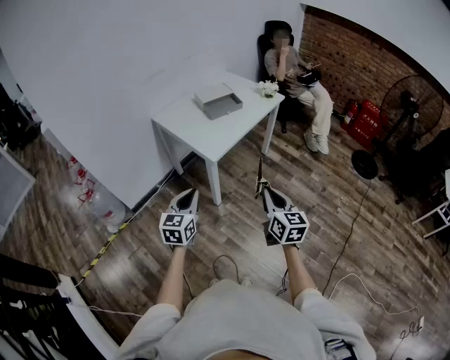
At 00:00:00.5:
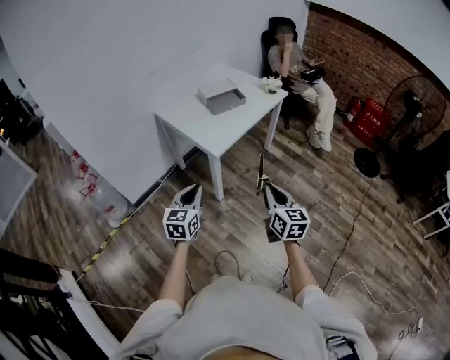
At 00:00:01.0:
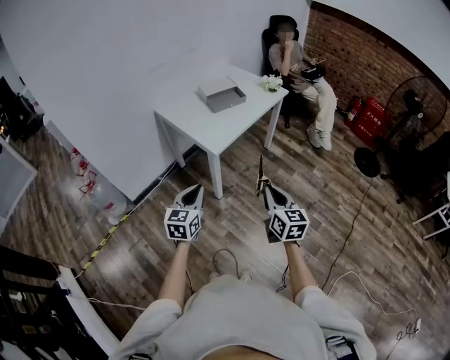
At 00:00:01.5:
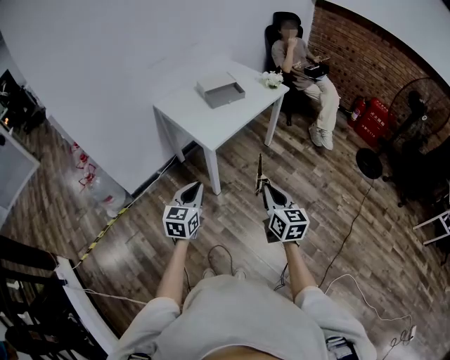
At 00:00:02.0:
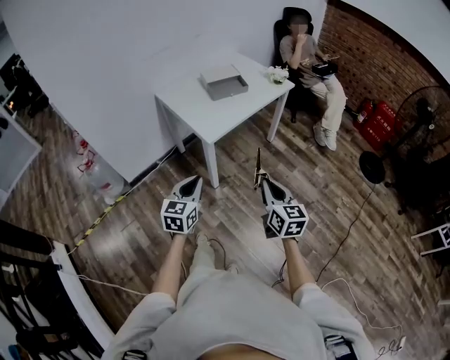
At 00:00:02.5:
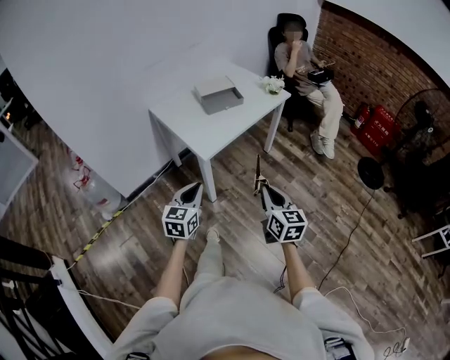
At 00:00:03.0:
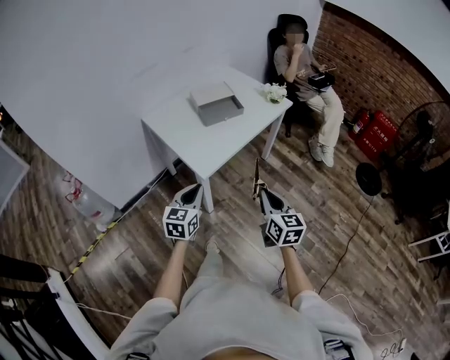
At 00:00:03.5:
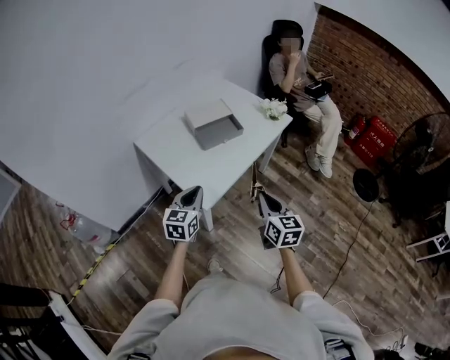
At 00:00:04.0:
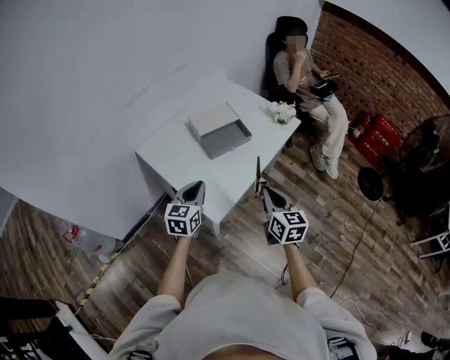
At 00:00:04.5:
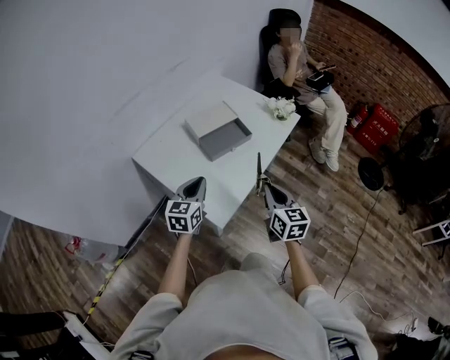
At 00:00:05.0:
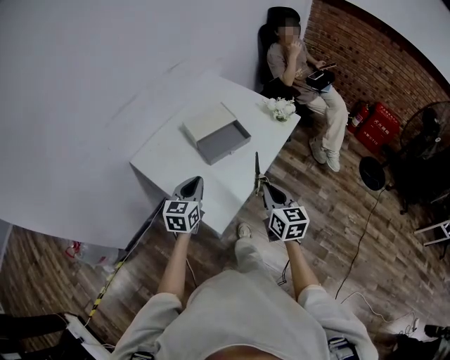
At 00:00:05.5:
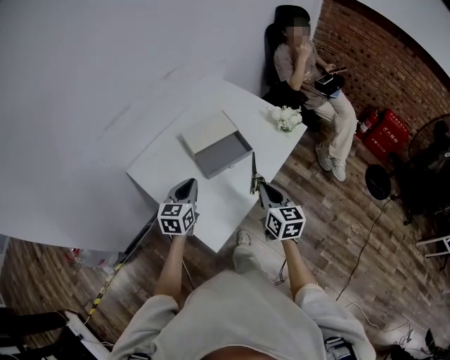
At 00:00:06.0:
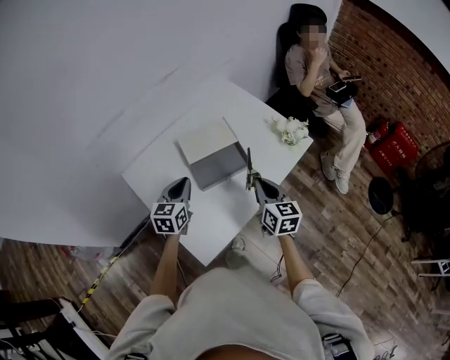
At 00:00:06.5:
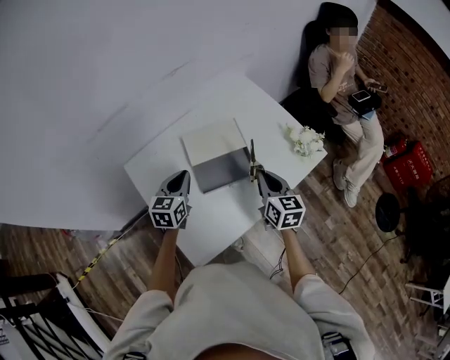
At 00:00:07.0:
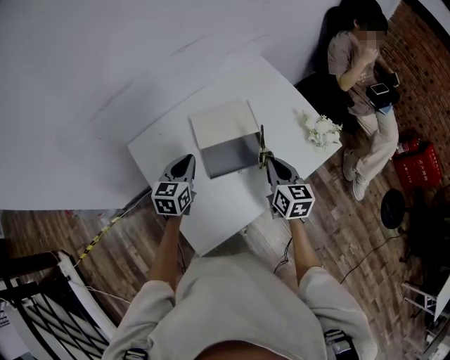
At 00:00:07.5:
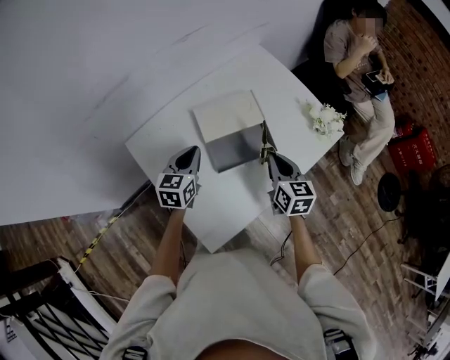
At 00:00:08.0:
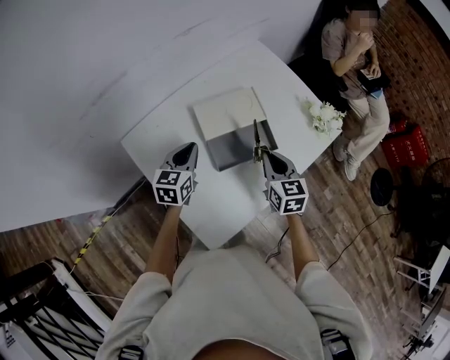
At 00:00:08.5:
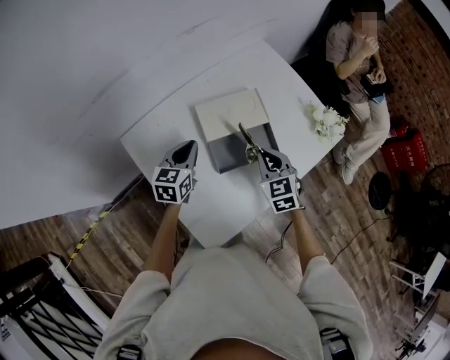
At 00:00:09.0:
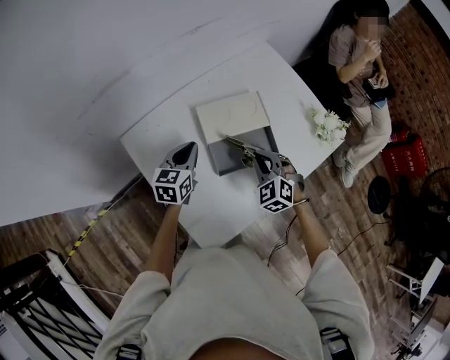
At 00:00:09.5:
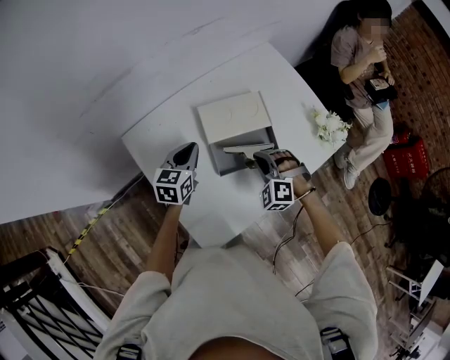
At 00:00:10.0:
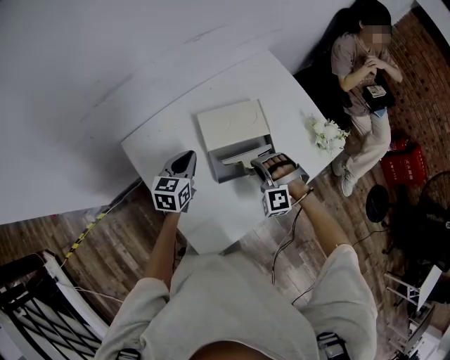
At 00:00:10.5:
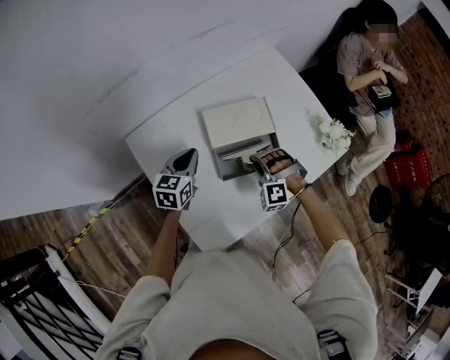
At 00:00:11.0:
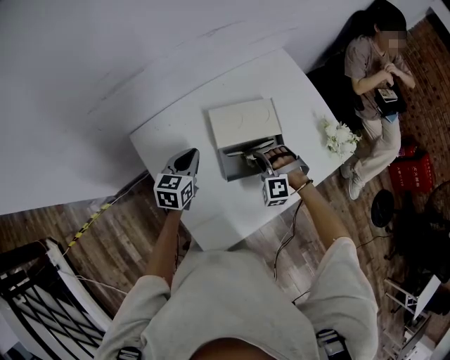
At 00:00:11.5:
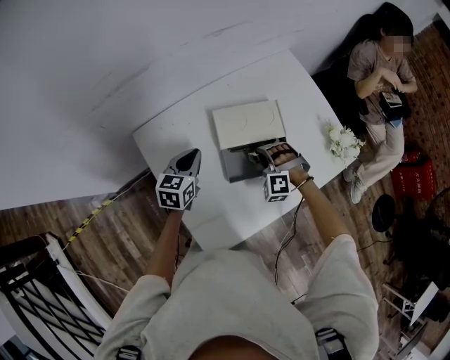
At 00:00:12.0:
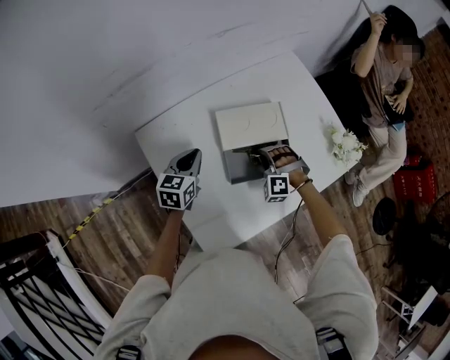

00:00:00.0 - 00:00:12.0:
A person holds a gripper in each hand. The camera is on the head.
00:00:00.0 - 00:00:02.0: Both grippers move to the right, approximately 5 cm.
00:00:02.0 - 00:00:04.0: Both grippers are carried forward, approximately 40 cm.
00:00:04.0 - 00:00:06.0: Both grippers move forward, about 25 cm.
00:00:06.0 - 00:00:08.0: The right gripper travels forward, downward and to the left by approximately 15 cm; the left gripper is displaced forward and downward by roughly 10 cm.
00:00:08.0 - 00:00:10.0: The right gripper moves downward, about 5 cm, and rolls counterclockwise, seen from behind, by about 90 degrees.
00:00:10.0 - 00:00:12.0: The right gripper moves downward and forward, approximately 10 cm.

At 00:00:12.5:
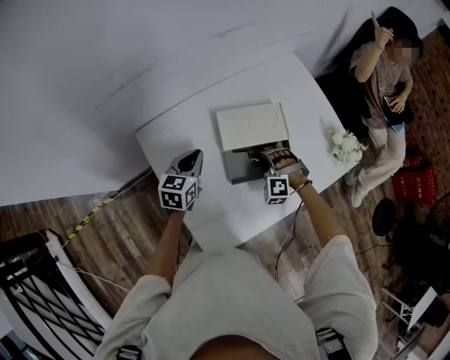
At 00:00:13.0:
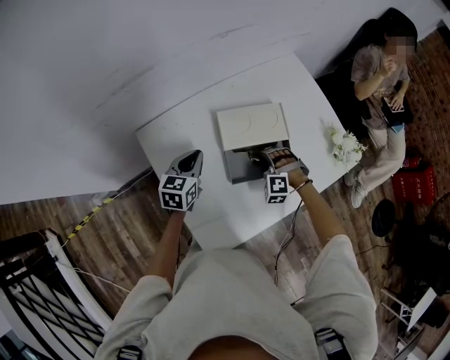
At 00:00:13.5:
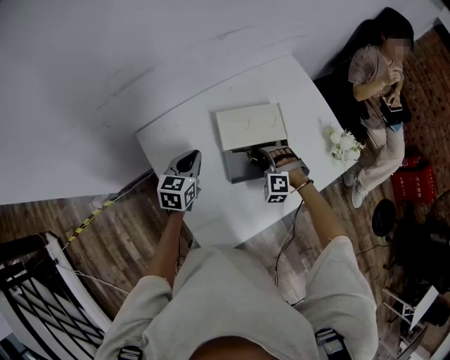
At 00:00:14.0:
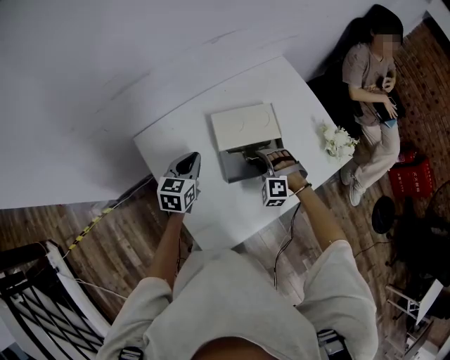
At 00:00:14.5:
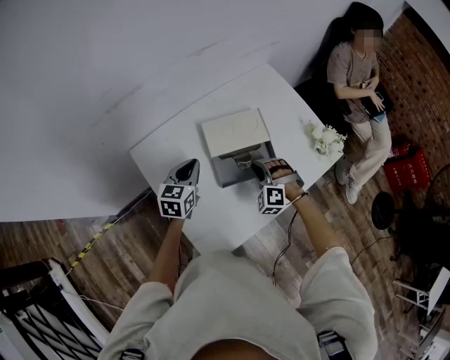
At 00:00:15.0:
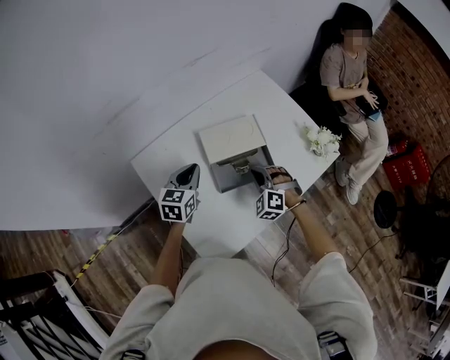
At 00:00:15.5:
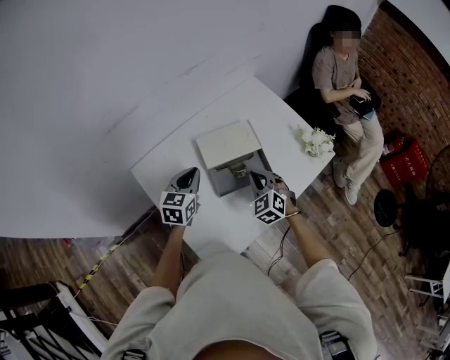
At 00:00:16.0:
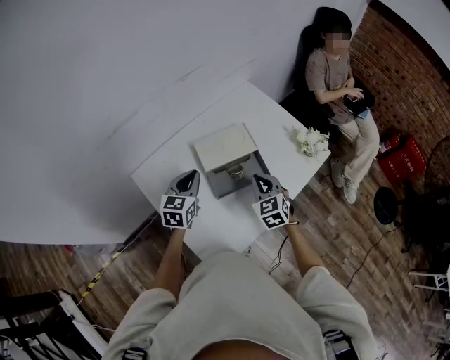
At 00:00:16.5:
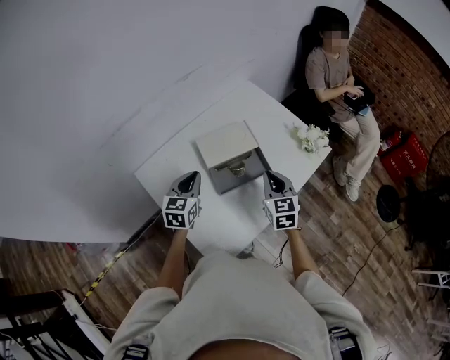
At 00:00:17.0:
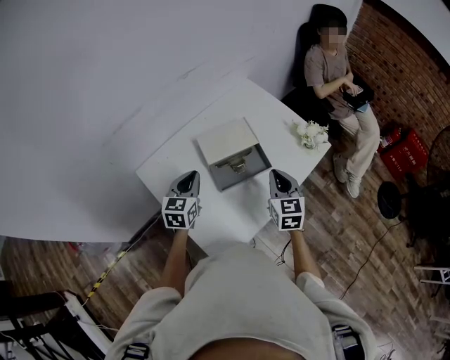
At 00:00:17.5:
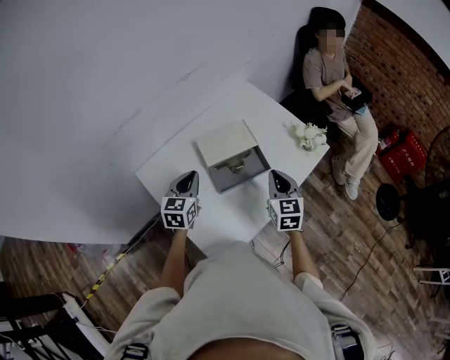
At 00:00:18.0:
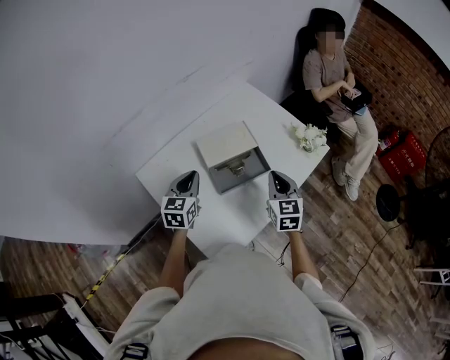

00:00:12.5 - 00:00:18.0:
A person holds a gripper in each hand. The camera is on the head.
00:00:12.5 - 00:00:14.5: The right gripper moves upward, about 5 cm, and opens and closes again, while the left gripper shifts by approximately 5 cm.
00:00:14.5 - 00:00:16.0: The left gripper ends up about 5 cm from where it was, while the right gripper travels upward by roughly 10 cm, and rolls clockwise, seen from behind, by roughly 60 degrees.
00:00:16.0 - 00:00:18.0: The right gripper travels upward and to the right by some 10 cm, and rotates about 20 degrees.

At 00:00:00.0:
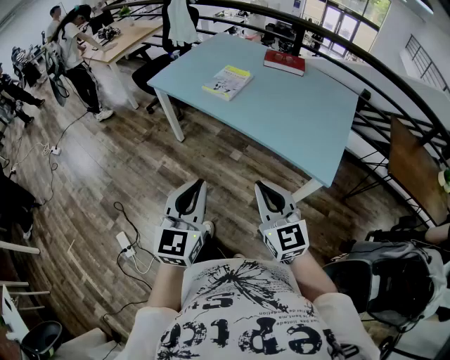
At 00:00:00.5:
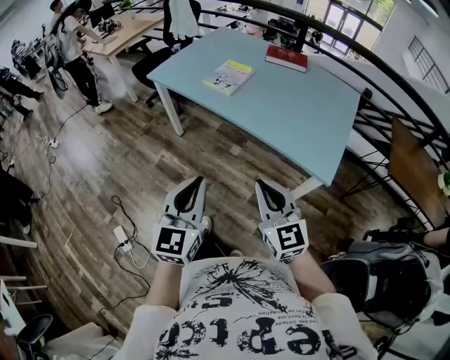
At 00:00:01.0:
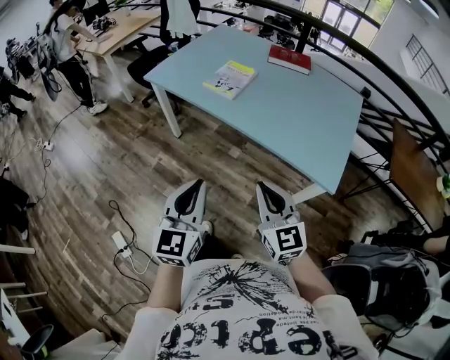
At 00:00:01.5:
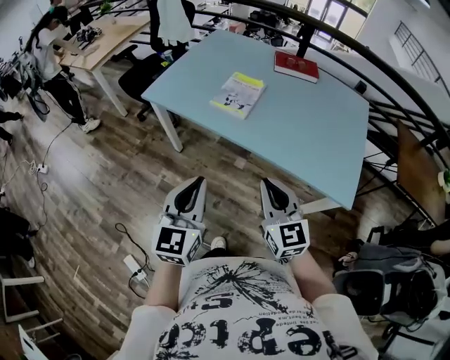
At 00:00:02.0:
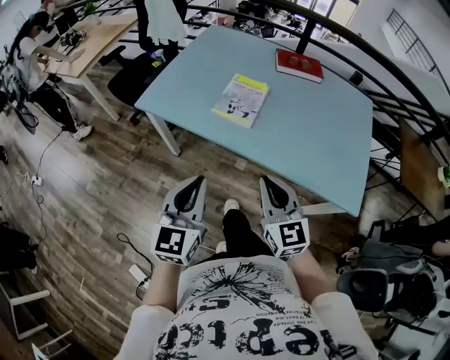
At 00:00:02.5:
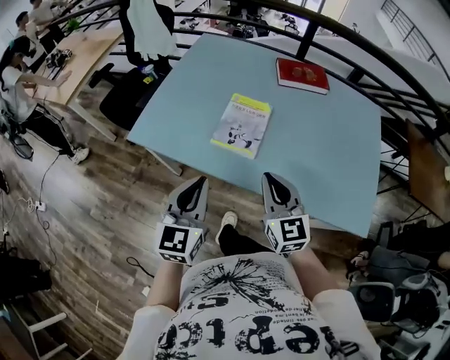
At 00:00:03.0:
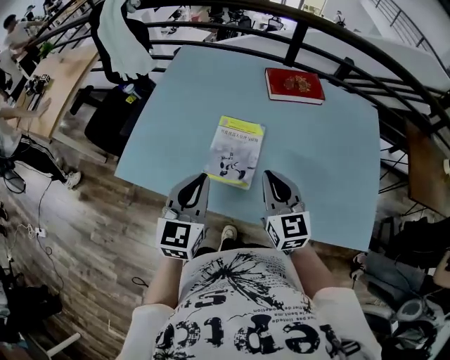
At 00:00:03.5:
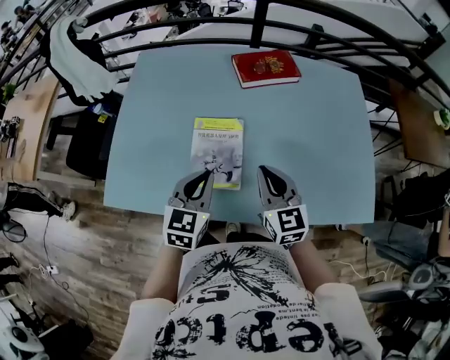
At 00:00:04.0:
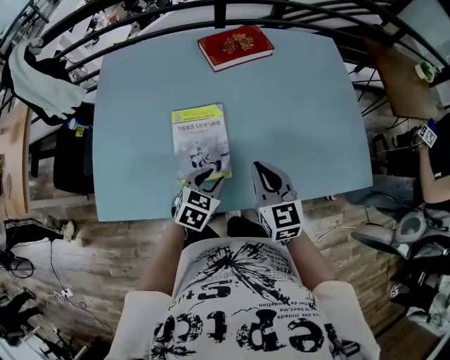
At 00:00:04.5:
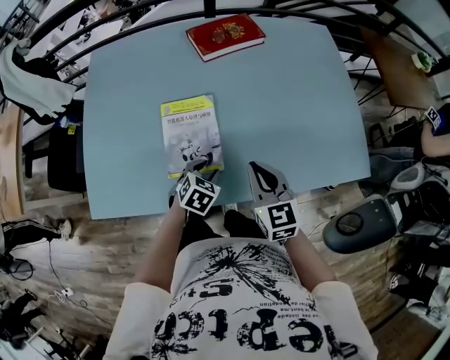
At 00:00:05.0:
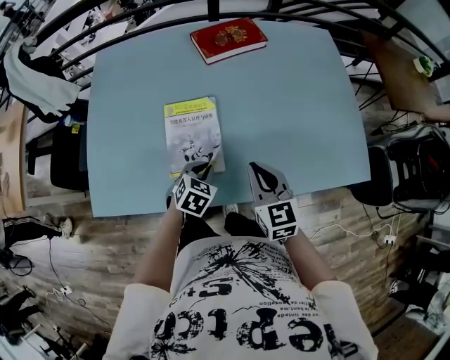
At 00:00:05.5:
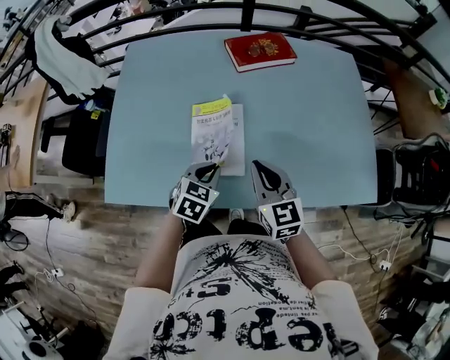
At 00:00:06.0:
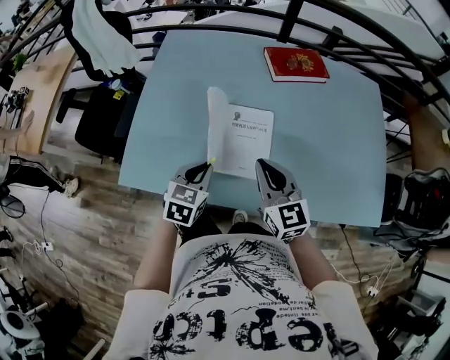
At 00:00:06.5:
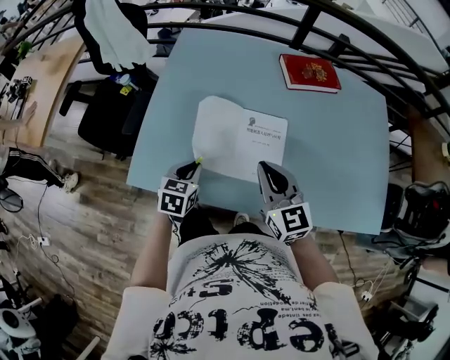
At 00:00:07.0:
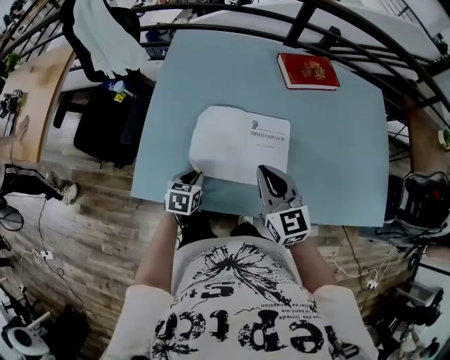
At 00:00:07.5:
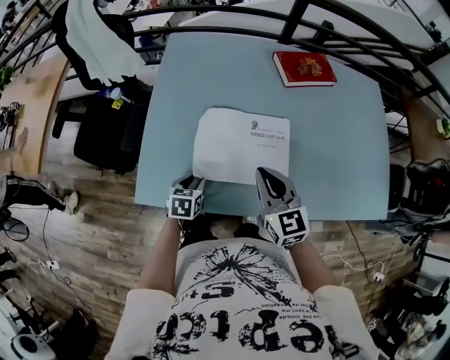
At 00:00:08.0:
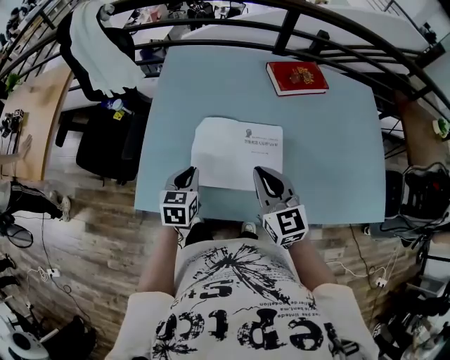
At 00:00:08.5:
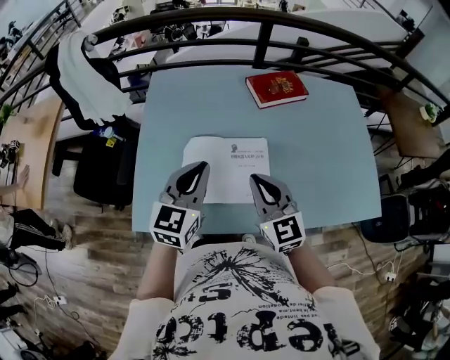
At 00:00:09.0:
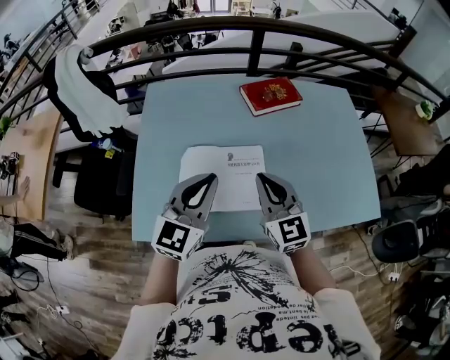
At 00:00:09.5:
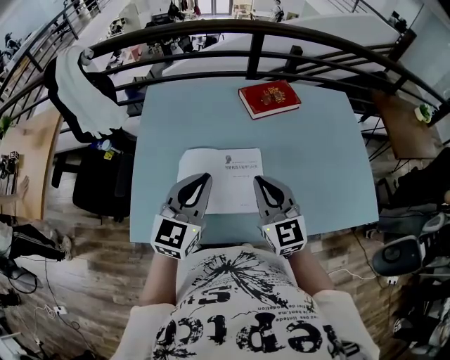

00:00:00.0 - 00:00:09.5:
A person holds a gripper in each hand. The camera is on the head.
00:00:00.0 - 00:00:02.0: The two grippers go approximately 35 cm forward and to the left.
00:00:02.0 - 00:00:04.0: The right gripper changes place by some 35 cm, and changes its angle by approximately 30 degrees. Meanwhile the left gripper shifts by approximately 40 cm, tips its fingers downward by about 40 degrees, and opens its fingers.
00:00:04.0 - 00:00:05.5: The left gripper moves roughly 5 cm downward and comes back, and closes up.
00:00:05.5 - 00:00:07.5: The two grippers go roughly 20 cm to the left. The left gripper changes its angle by roughly 30 degrees, and opens up.
00:00:07.5 - 00:00:09.5: The left gripper travels upward by about 30 cm, points its fingers roughly 50 degrees further upward, and closes. Meanwhile the right gripper heads upward and to the right, covering some 10 cm.
